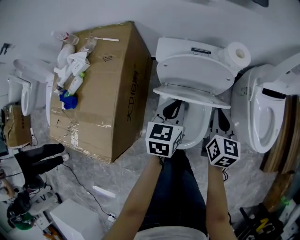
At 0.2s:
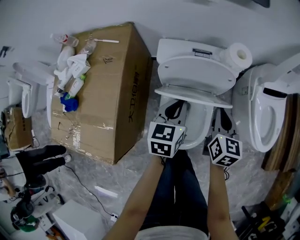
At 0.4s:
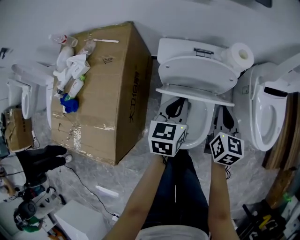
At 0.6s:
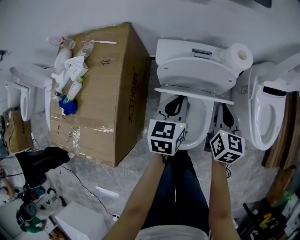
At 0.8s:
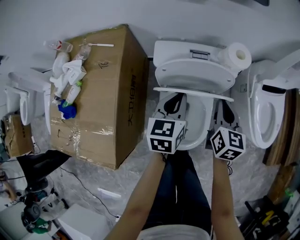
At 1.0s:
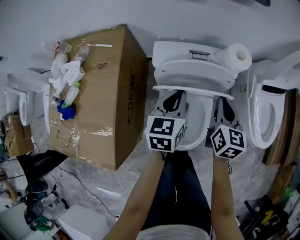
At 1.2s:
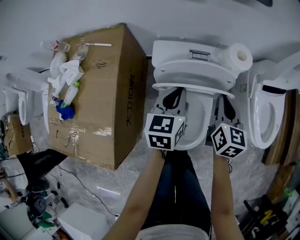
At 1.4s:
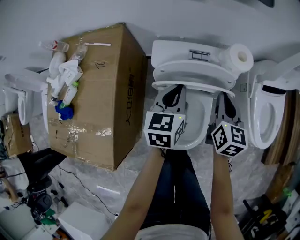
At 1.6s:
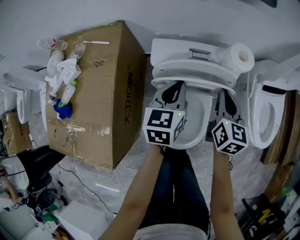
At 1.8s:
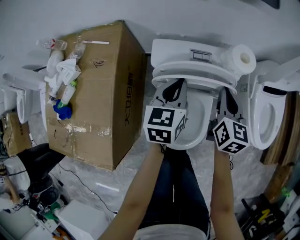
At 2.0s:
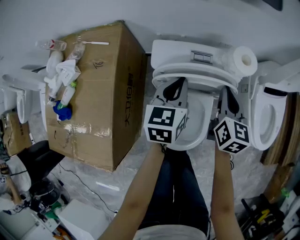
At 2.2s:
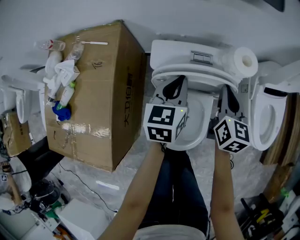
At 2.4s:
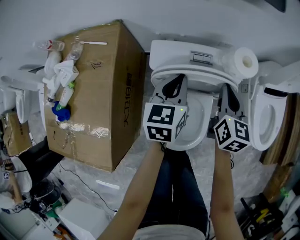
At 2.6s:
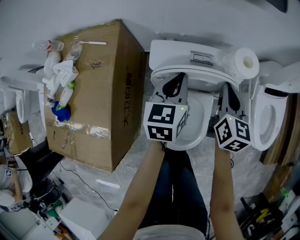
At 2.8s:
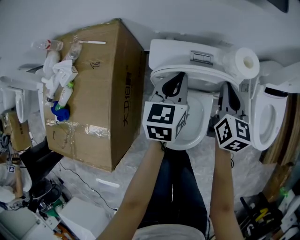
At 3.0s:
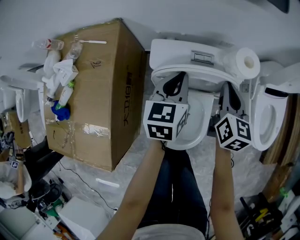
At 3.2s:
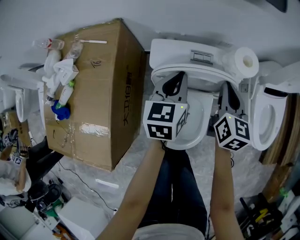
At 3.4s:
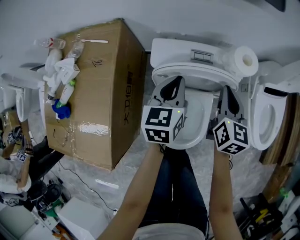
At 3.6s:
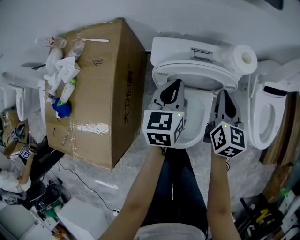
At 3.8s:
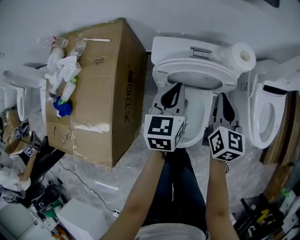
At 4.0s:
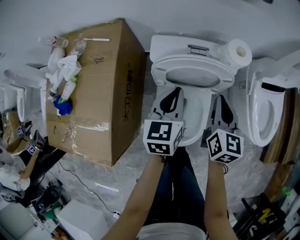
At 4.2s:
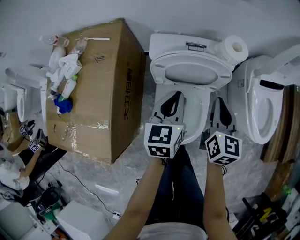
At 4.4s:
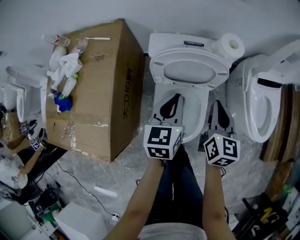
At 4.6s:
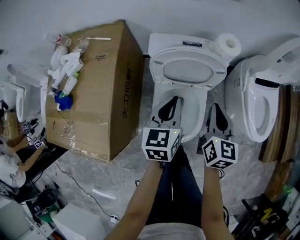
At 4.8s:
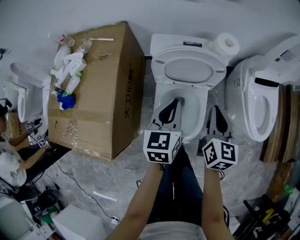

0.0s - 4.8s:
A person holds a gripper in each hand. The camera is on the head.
0.0s - 1.6s: Both grippers move forward, some 10 cm.
1.6s - 3.2s: The grippers make only small movements.
3.2s - 4.8s: Both grippers move backward, roughly 20 cm.

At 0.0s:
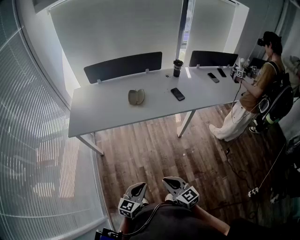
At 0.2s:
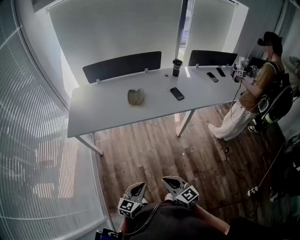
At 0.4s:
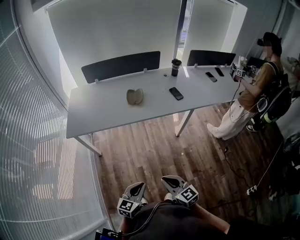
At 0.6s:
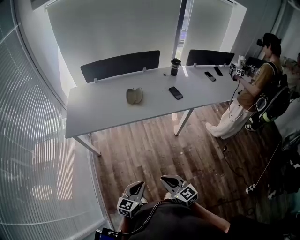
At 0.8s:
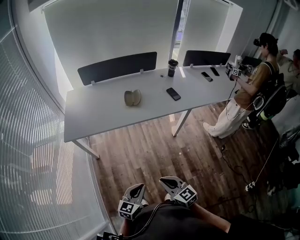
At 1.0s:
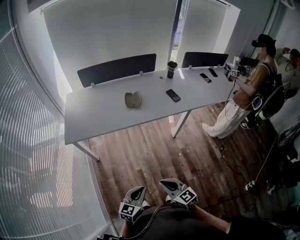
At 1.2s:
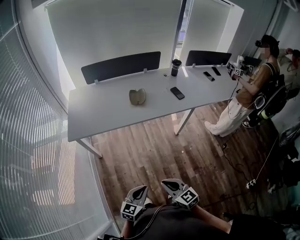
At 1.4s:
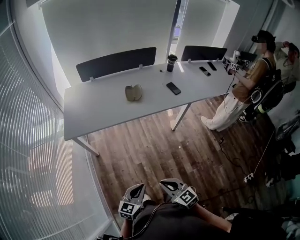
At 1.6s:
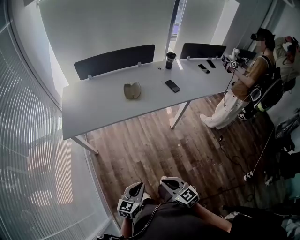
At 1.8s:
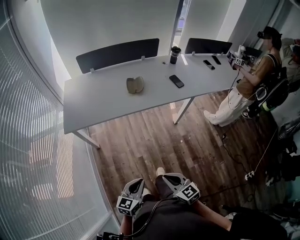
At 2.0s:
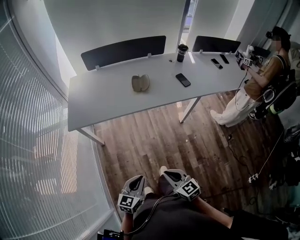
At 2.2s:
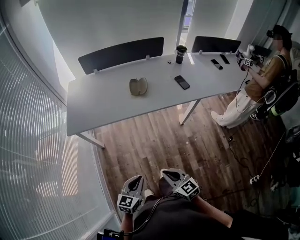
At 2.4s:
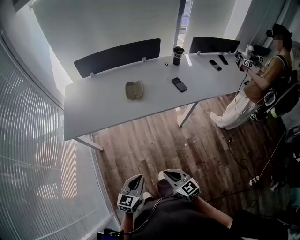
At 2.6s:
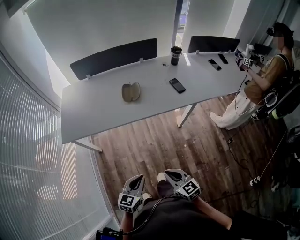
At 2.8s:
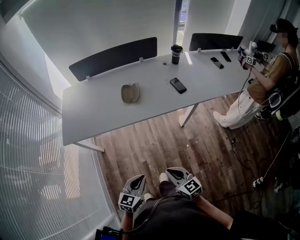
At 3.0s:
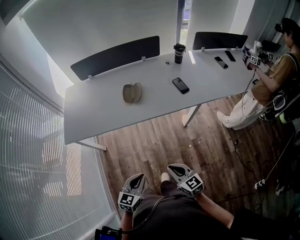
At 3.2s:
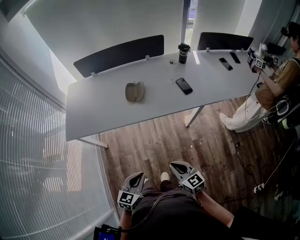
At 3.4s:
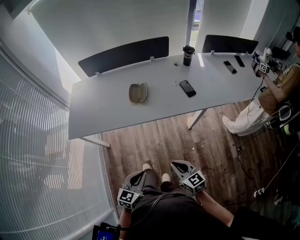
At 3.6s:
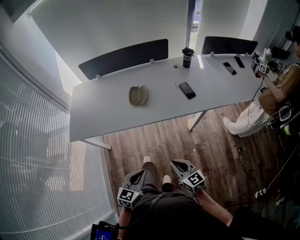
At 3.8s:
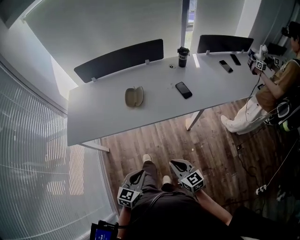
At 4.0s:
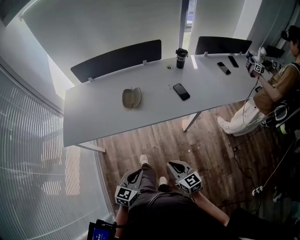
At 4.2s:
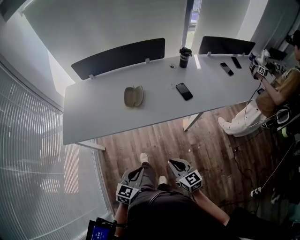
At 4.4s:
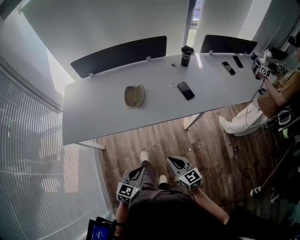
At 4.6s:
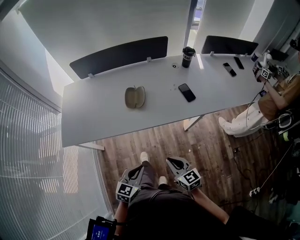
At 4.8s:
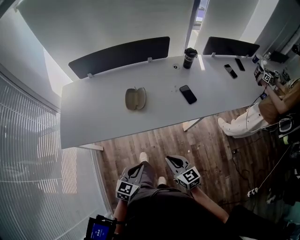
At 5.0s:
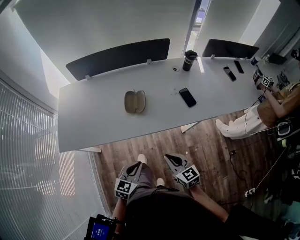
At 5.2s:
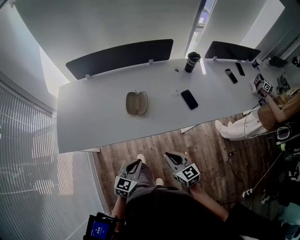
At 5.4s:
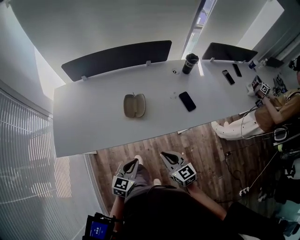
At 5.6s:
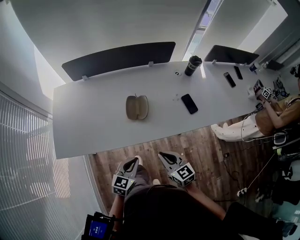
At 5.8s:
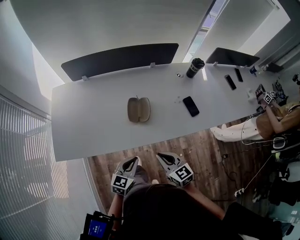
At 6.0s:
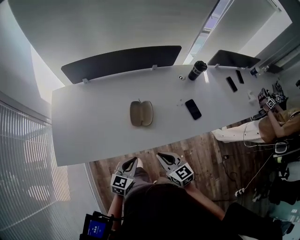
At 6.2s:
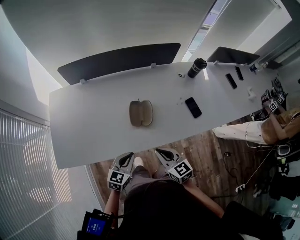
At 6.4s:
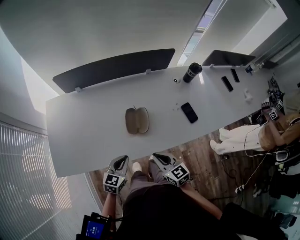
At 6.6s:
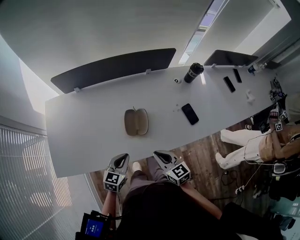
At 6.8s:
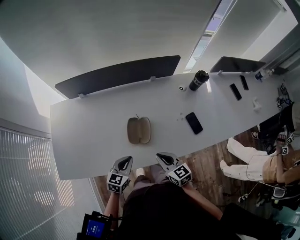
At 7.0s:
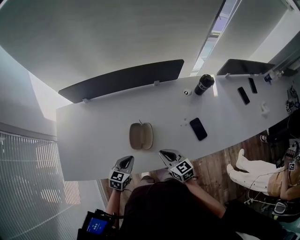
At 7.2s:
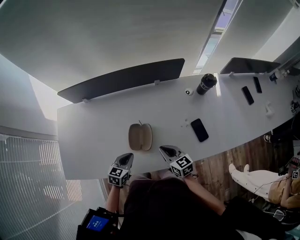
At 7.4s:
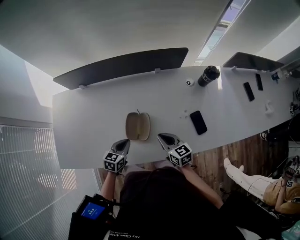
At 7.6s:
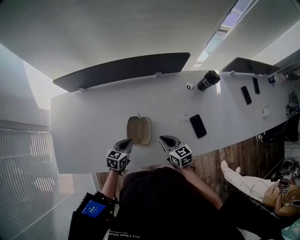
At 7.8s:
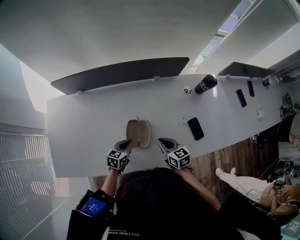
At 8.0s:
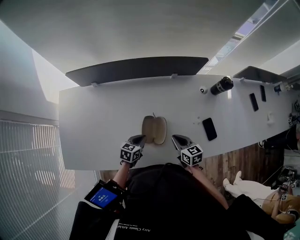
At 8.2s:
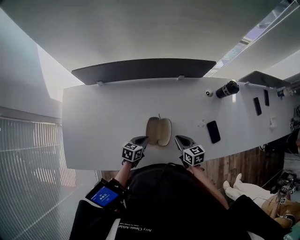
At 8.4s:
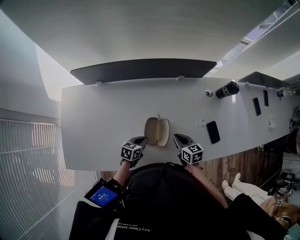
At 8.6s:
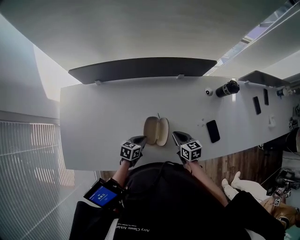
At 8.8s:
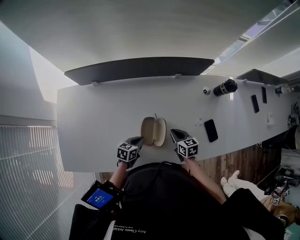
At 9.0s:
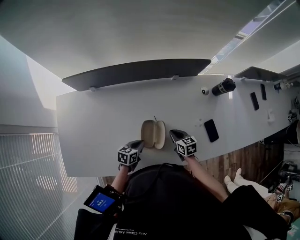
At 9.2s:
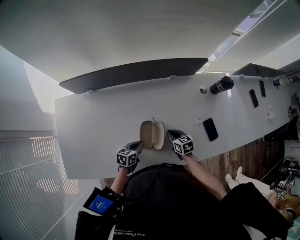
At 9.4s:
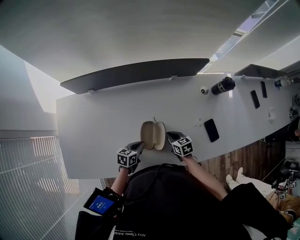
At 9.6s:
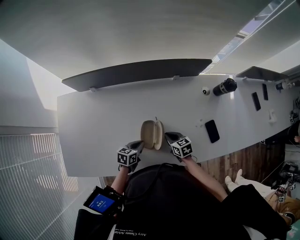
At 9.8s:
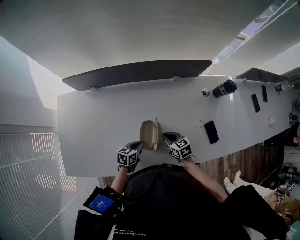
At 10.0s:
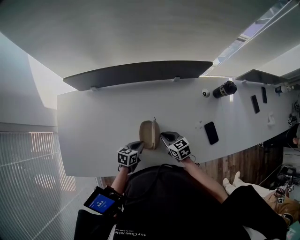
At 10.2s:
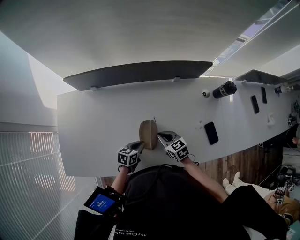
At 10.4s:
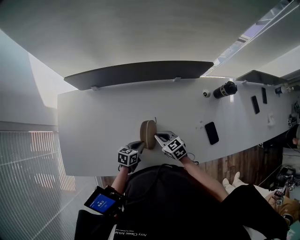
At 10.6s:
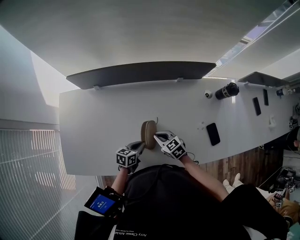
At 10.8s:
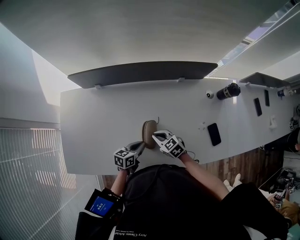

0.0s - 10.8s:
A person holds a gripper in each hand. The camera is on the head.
0.0s - 1.6s: Both grippers travel together to the left, about 10 cm.
1.6s - 3.0s: The two grippers go approximately 20 cm forward and to the right.
3.0s - 4.6s: The two grippers go roughly 15 cm forward.
4.6s - 6.2s: The two grippers go about 25 cm forward and to the left.
6.2s - 7.8s: The two grippers go about 20 cm forward and downward.
7.8s - 9.2s: The left gripper moves some 5 cm. The right gripper is displaced downward and forward by roughly 10 cm.
9.2s - 10.8s: The right gripper shifts some 10 cm to the left, and turns by some 30 degrees.

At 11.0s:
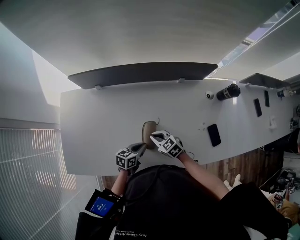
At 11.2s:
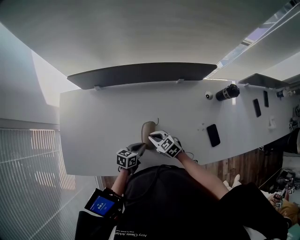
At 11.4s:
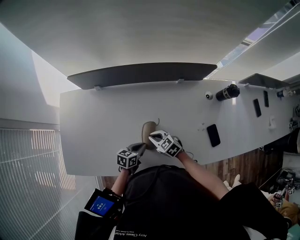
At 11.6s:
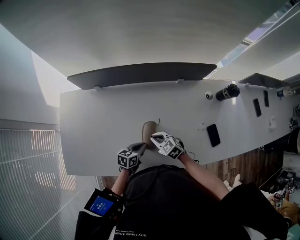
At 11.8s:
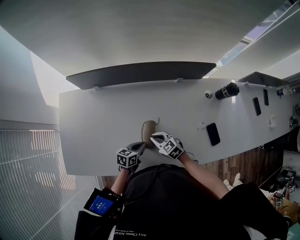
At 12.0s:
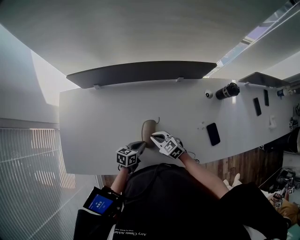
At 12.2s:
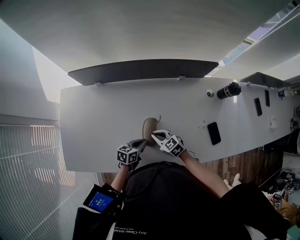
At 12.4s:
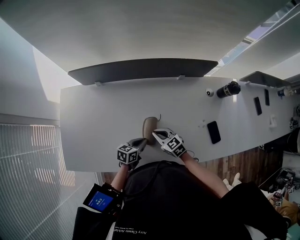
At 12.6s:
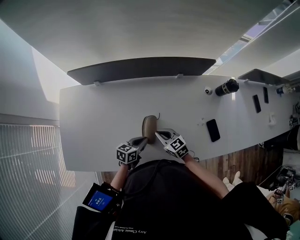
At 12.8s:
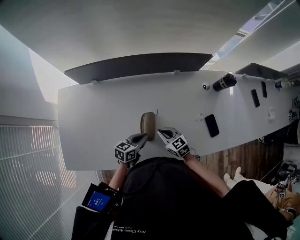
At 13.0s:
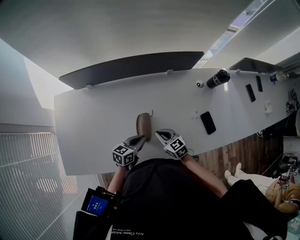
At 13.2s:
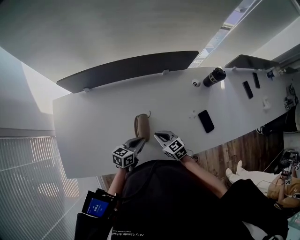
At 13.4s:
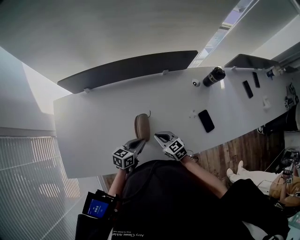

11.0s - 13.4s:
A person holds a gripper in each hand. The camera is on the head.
11.0s - 12.2s: The grippers make only small movements.
12.2s - 13.4s: The right gripper is displaced to the right by about 5 cm. Meanwhile the left gripper shifts some 5 cm upward.

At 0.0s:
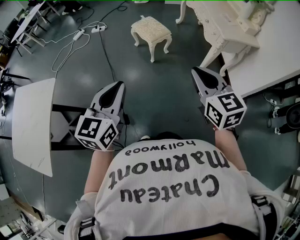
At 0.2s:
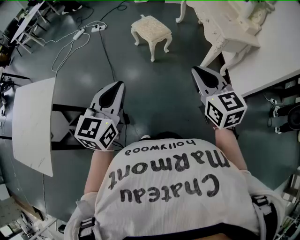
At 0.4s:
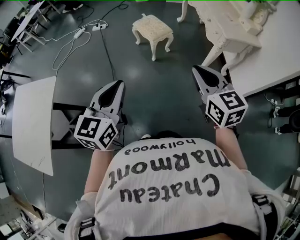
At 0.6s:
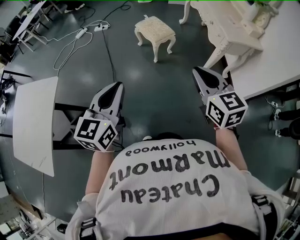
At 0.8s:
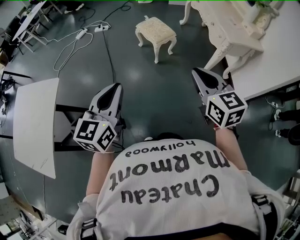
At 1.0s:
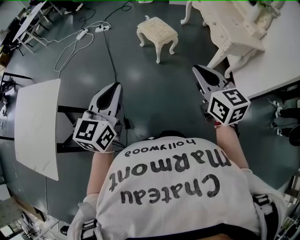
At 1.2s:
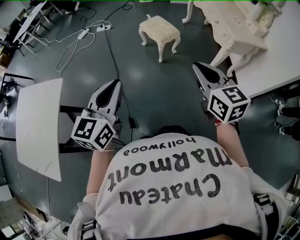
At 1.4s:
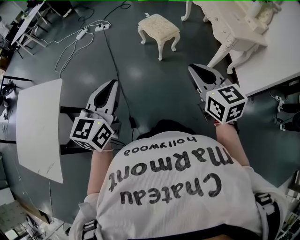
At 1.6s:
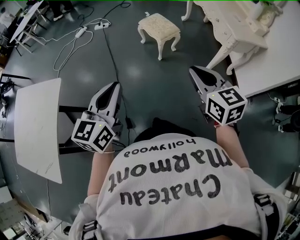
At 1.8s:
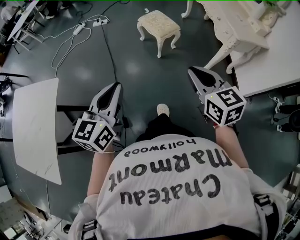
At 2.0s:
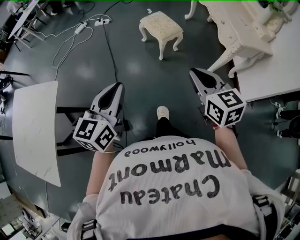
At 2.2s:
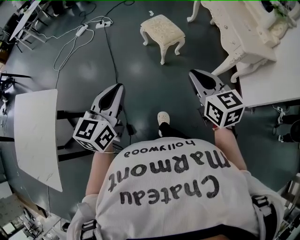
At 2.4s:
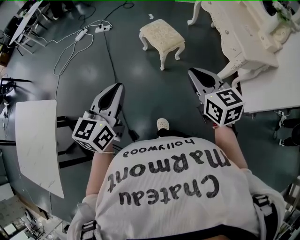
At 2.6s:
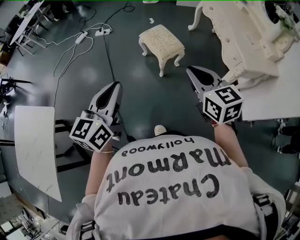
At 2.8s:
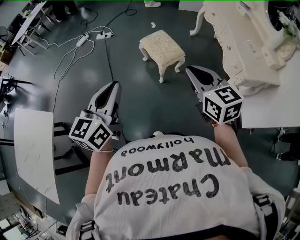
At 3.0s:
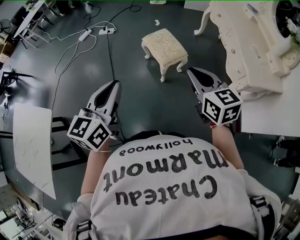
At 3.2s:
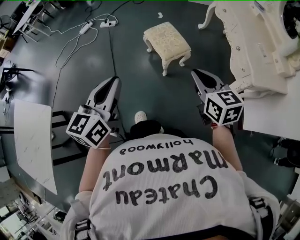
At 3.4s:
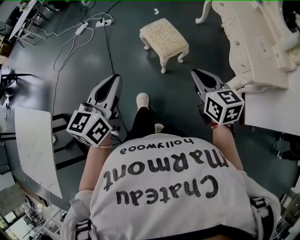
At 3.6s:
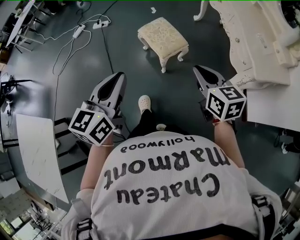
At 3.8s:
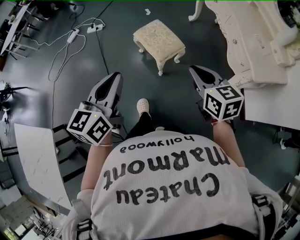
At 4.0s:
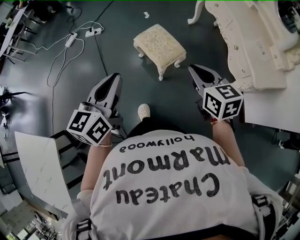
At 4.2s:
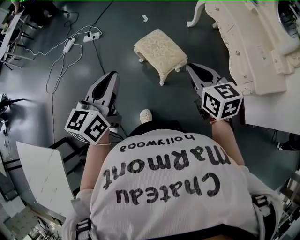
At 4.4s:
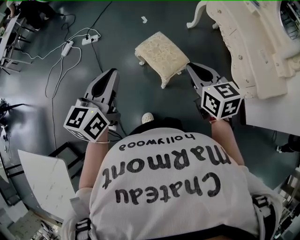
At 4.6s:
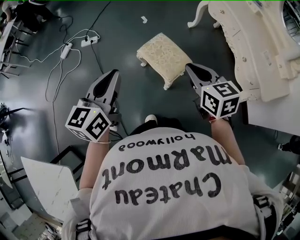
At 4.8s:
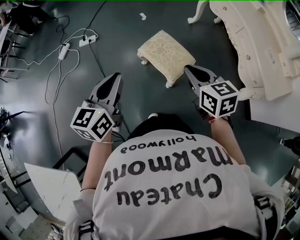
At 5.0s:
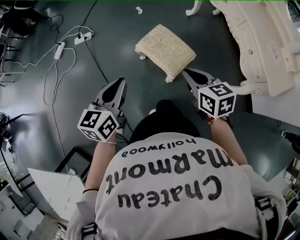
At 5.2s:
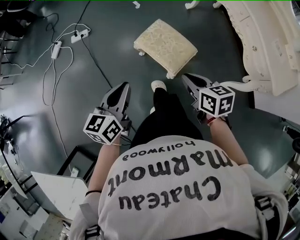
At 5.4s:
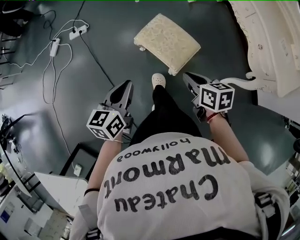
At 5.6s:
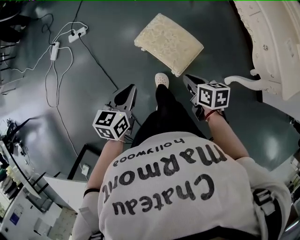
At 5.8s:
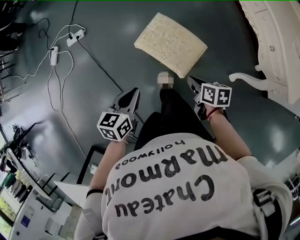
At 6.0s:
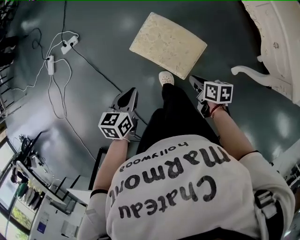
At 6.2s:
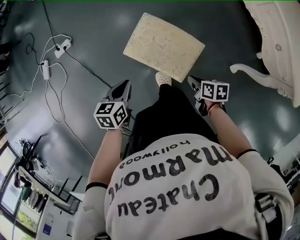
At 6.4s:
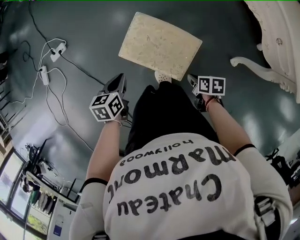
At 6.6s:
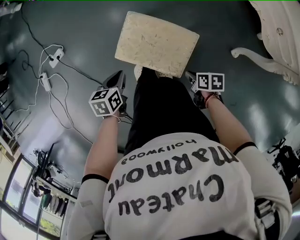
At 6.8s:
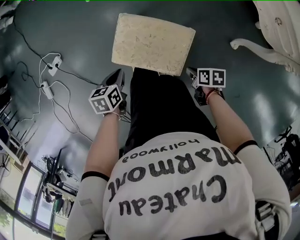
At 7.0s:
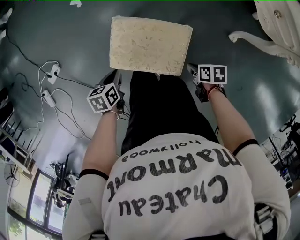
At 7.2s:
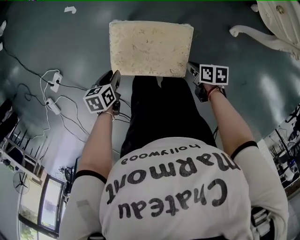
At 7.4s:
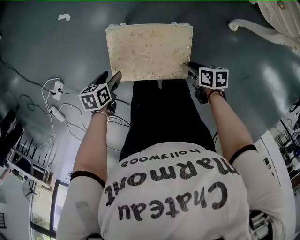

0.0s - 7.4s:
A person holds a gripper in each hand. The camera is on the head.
0.0s - 1.4s: The two grippers go some 10 cm to the left.
1.4s - 3.0s: The two grippers go approximately 30 cm forward.
3.0s - 4.4s: The two grippers go some 25 cm forward.
4.4s - 6.0s: The left gripper goes about 40 cm downward and forward, and points its fingers approximately 30 degrees further downward. The right gripper heads downward, covering about 35 cm, and twists approximately 50 degrees clockwise, seen from behind.
6.0s - 7.4s: The two grippers go roughly 20 cm downward. The right gripper changes its angle by about 30 degrees, and opens. The left gripper changes its angle by approximately 40 degrees, and opens.
